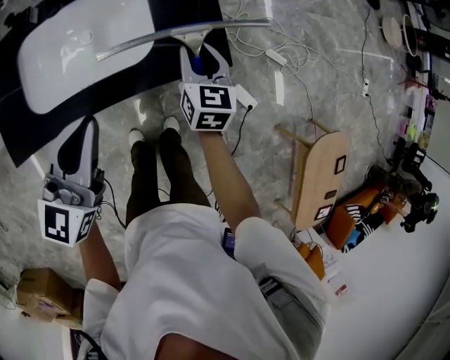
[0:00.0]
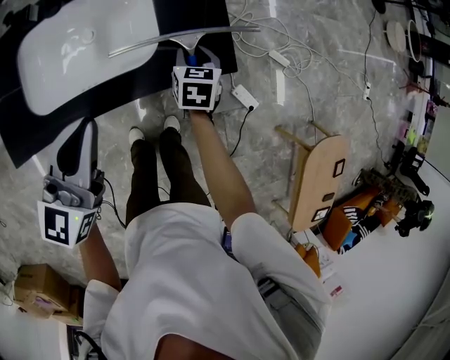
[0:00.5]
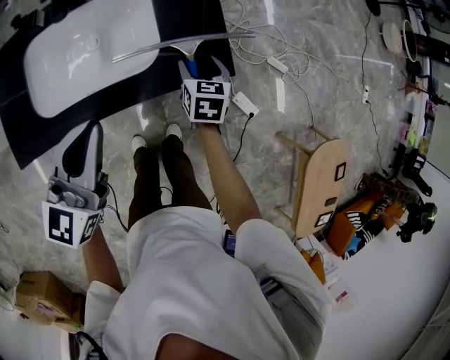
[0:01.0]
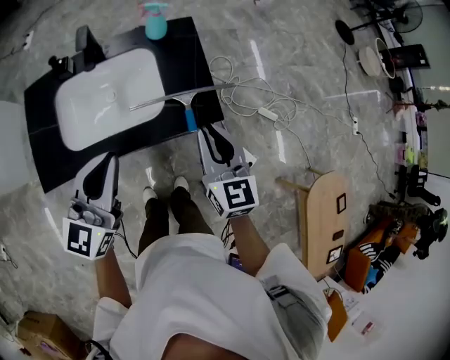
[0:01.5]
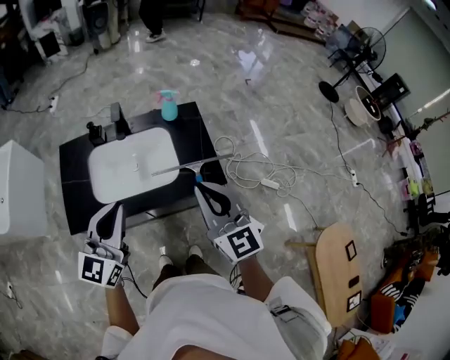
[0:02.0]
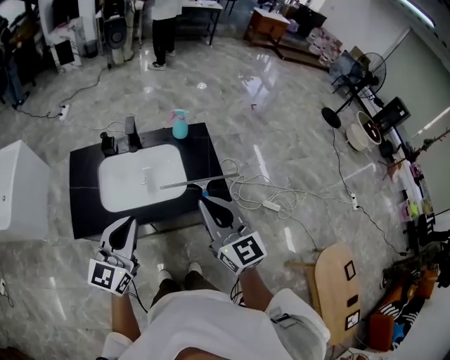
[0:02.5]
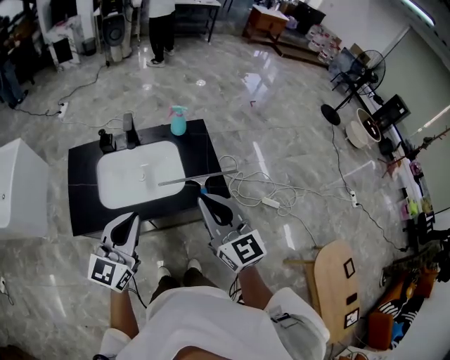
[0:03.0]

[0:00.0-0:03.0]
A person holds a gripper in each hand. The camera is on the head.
0:00.0 to 0:01.5: The left gripper moves upward, some 5 cm. The right gripper shifts roughly 20 cm upward and backward, and opens, then closes once more.
0:01.5 to 0:03.0: The right gripper goes approximately 20 cm upward, to the left and backward, and rotates about 20 degrees. The left gripper travels upward and backward by about 10 cm.

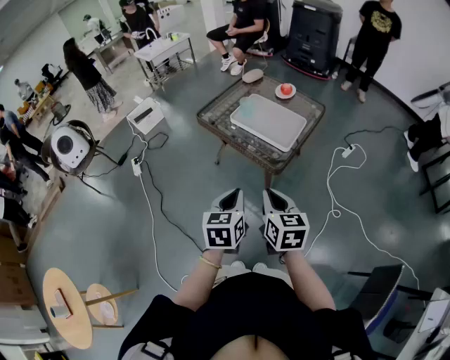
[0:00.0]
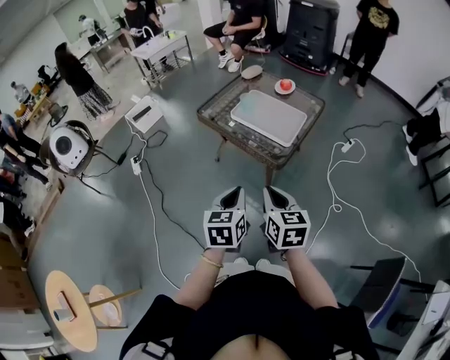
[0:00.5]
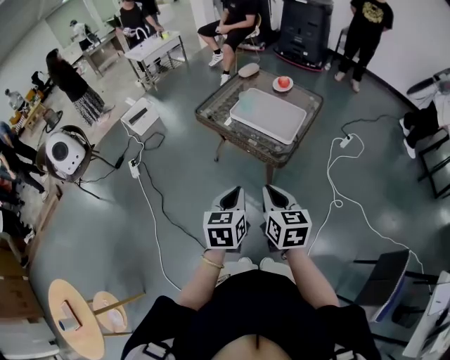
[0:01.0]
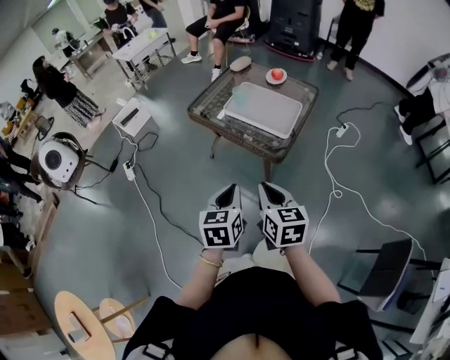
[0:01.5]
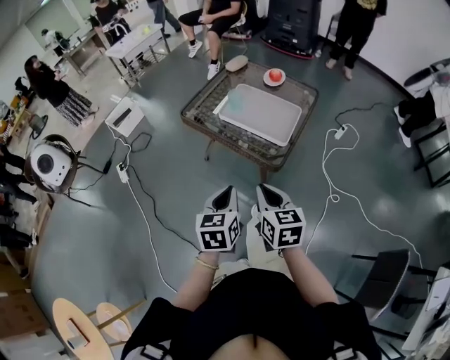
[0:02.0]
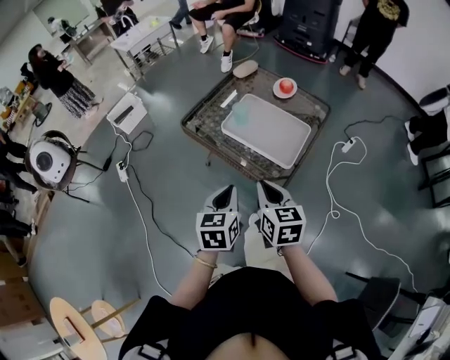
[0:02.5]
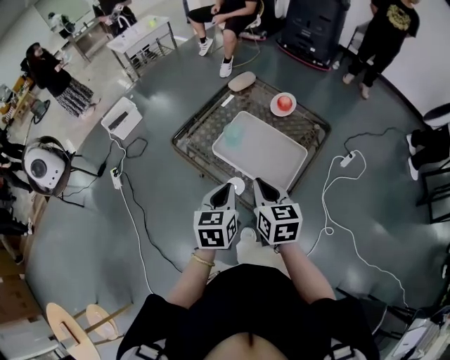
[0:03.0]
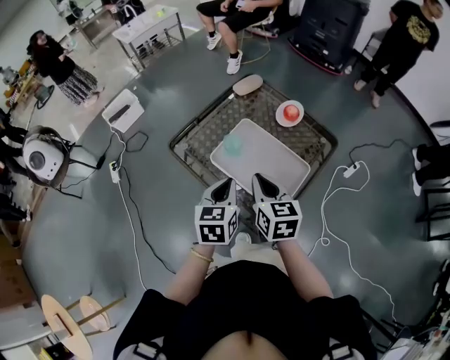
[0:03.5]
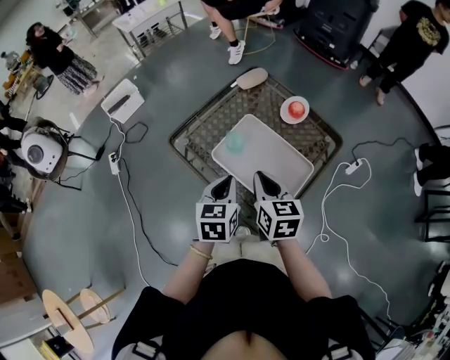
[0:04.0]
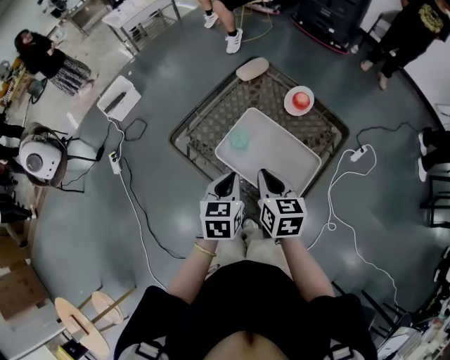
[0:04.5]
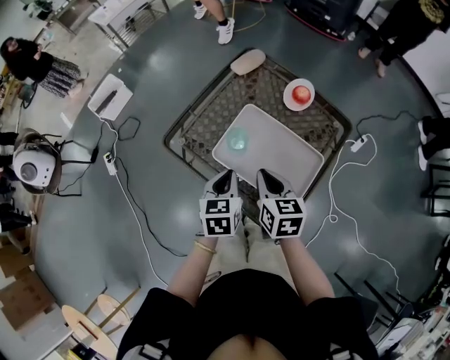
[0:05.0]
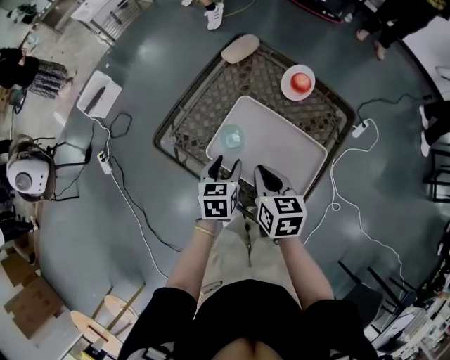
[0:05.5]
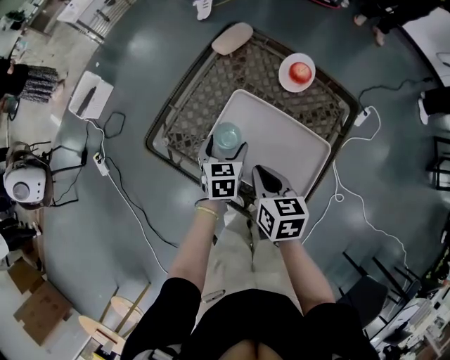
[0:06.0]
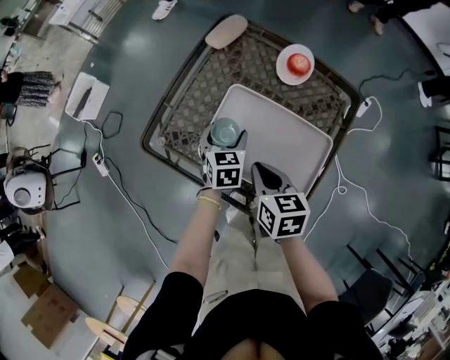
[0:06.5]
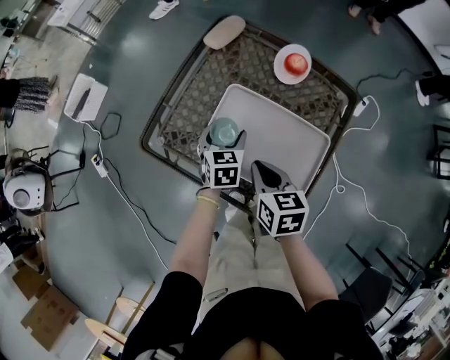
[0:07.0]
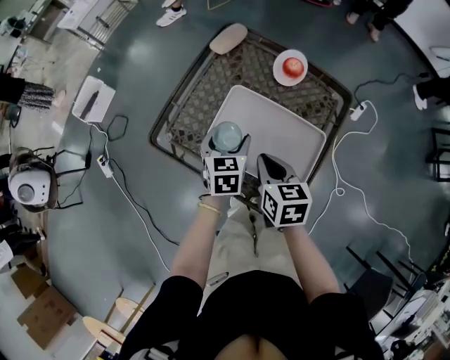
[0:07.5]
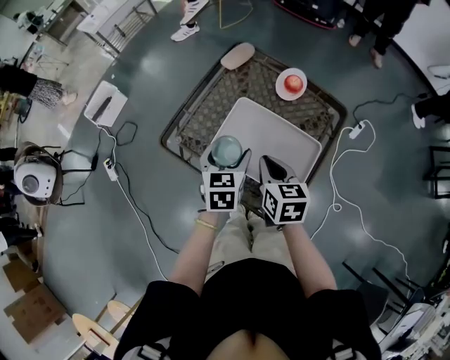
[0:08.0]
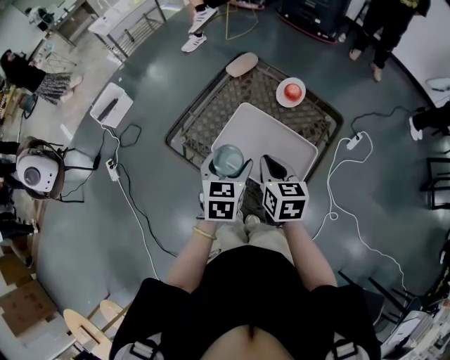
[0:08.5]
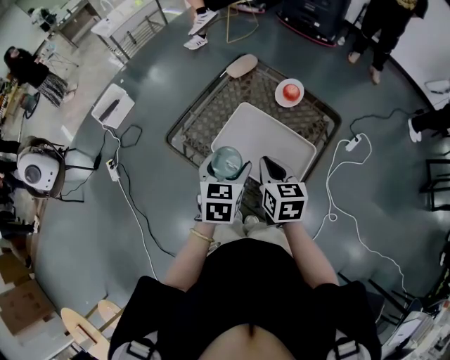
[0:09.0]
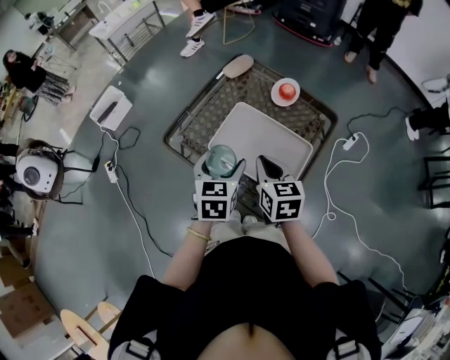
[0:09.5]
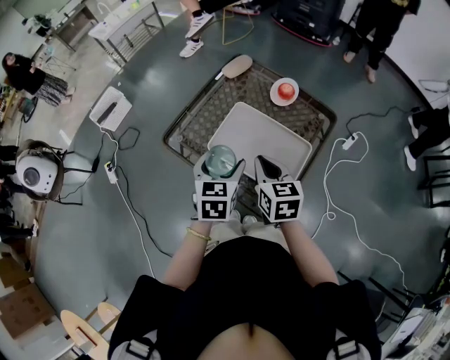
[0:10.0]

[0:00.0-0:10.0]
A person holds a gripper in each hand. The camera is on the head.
0:00.0 to 0:02.0: Both grippers travel together forward, about 5 cm.
0:02.0 to 0:04.0: The two grippers go some 35 cm forward.
0:04.0 to 0:06.0: The right gripper travels downward and forward by approximately 15 cm, while the left gripper is displaced downward and forward by approximately 25 cm, and opens.
0:06.0 to 0:08.0: The right gripper goes approximately 5 cm upward. The left gripper shifts some 15 cm upward.
0:08.0 to 0:10.0: The right gripper shifts by roughly 5 cm. Meanwhile the left gripper moves backward and upward, roughly 10 cm.

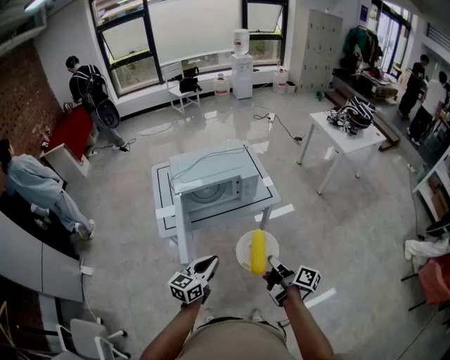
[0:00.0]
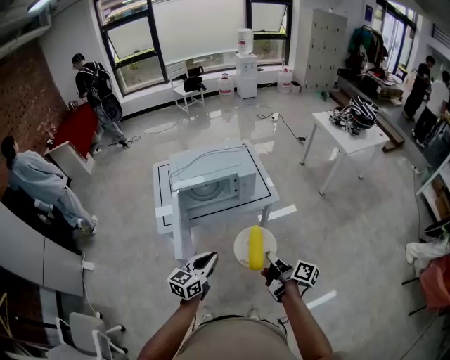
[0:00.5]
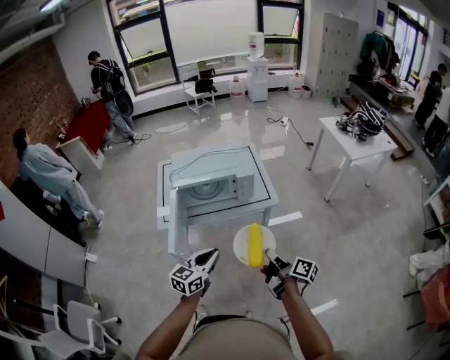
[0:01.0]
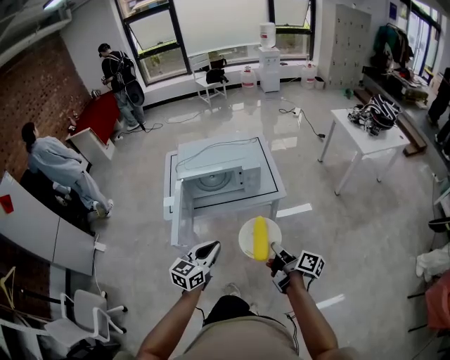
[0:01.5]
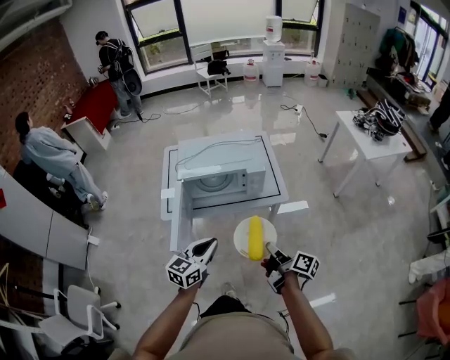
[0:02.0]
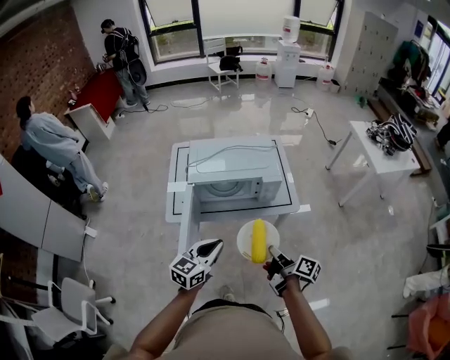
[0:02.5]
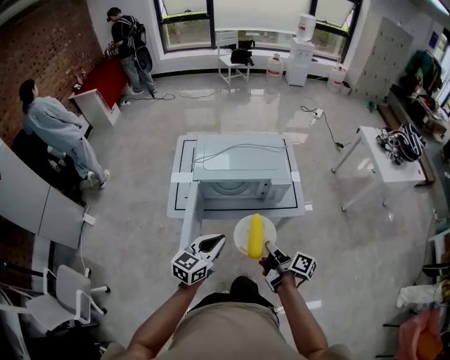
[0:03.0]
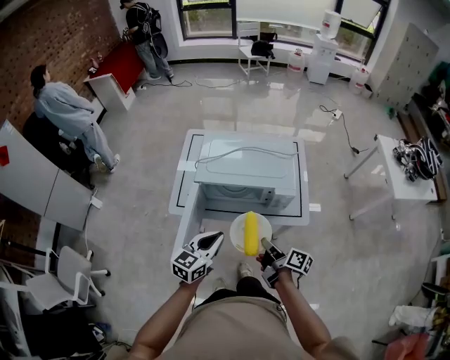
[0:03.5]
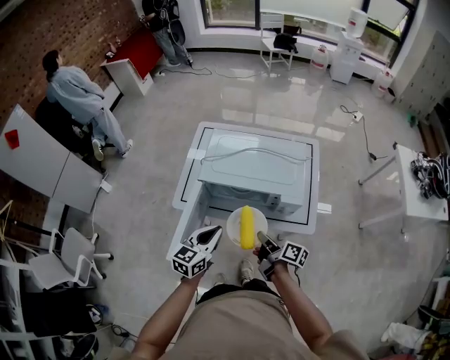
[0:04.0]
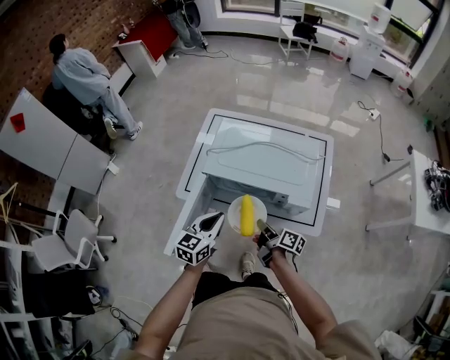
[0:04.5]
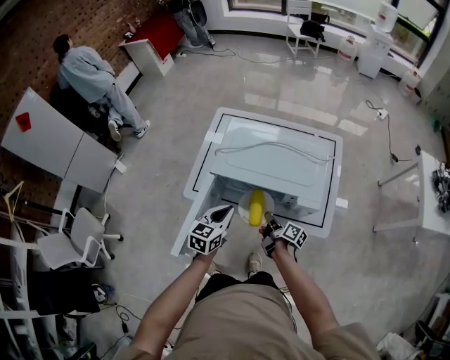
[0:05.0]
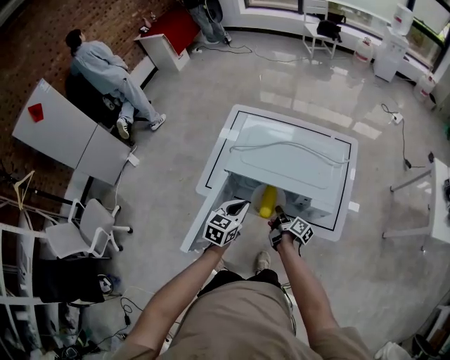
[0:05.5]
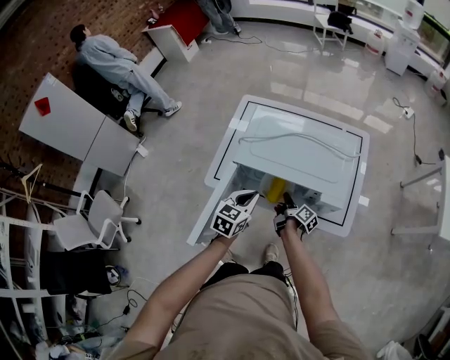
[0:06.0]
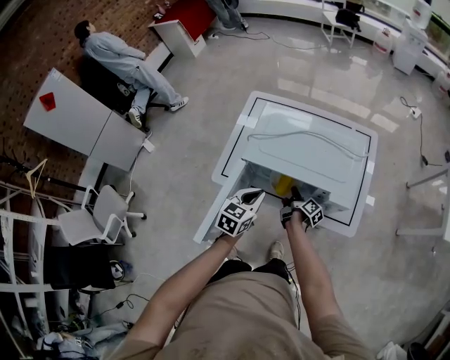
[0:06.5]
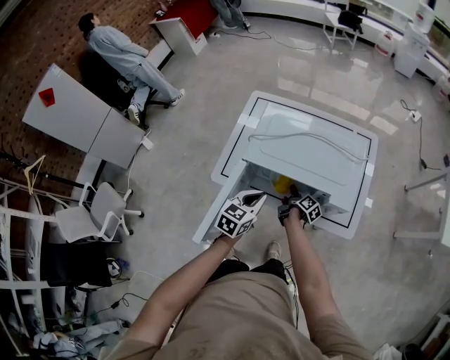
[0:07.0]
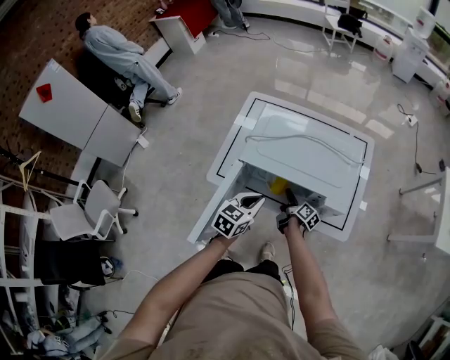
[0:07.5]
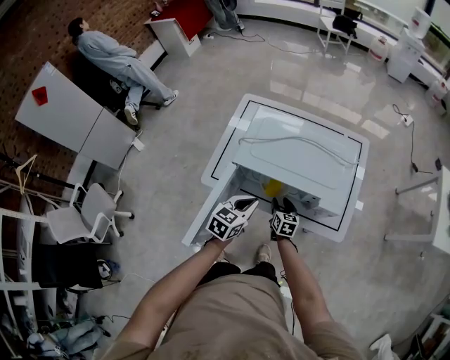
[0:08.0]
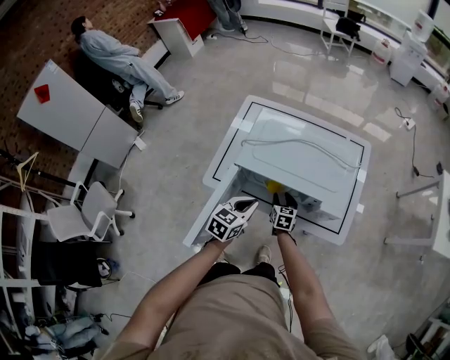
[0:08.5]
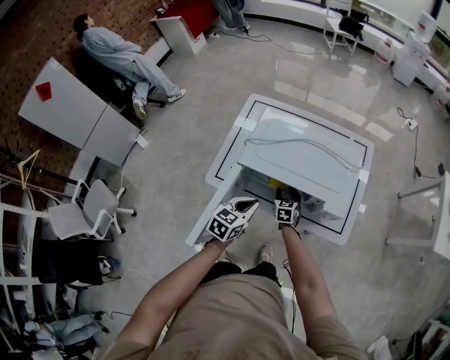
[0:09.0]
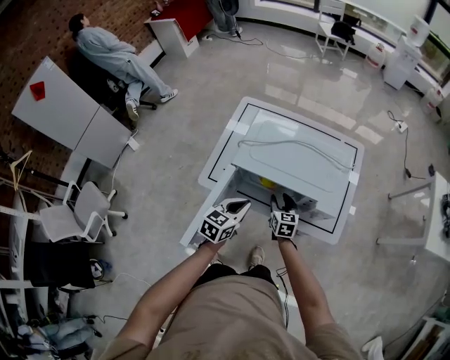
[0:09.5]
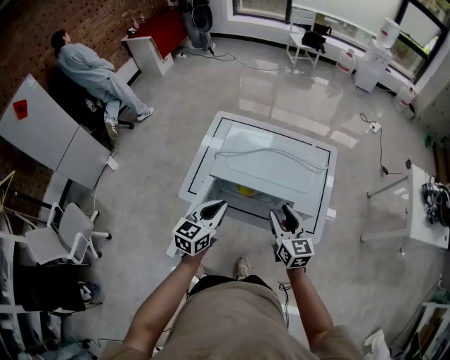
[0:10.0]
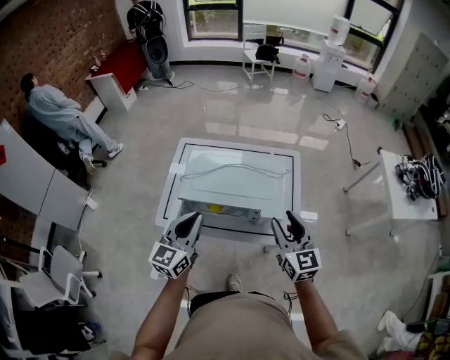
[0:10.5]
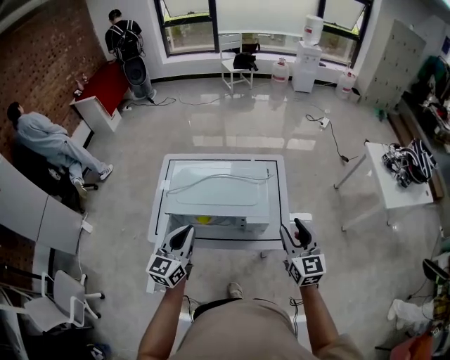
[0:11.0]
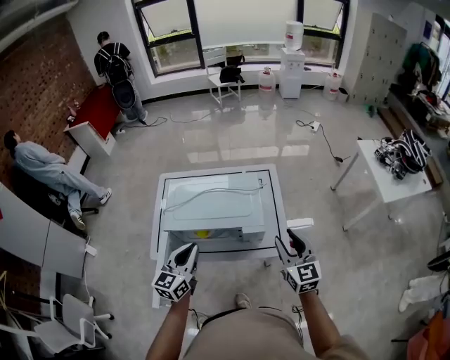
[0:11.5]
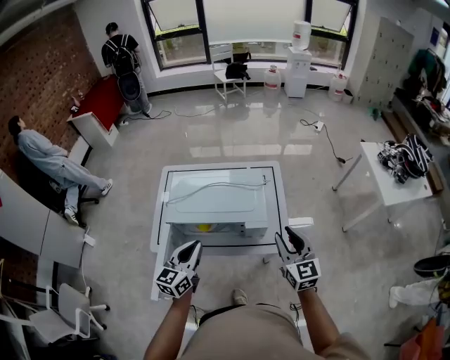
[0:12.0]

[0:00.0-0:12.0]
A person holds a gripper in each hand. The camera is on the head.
0:00.0 to 0:02.0: The right gripper travels forward by some 5 cm. Meanwhile the left gripper heads to the right, covering roughly 5 cm.
0:02.0 to 0:04.0: The two grippers go some 20 cm forward. The left gripper changes its angle by approximately 20 degrees. The right gripper rotates some 20 degrees.
0:04.0 to 0:06.0: The right gripper travels downward and forward by some 25 cm. The left gripper moves forward and downward, approximately 15 cm.
0:06.0 to 0:08.0: The right gripper rolls counterclockwise, seen from behind, by about 60 degrees, and opens up.
0:08.0 to 0:10.0: The left gripper travels upward by about 10 cm, while the right gripper travels upward by approximately 30 cm, and changes its angle by approximately 20 degrees.
0:10.0 to 0:12.0: The right gripper goes about 20 cm to the right and upward, and turns by approximately 20 degrees; the left gripper moves to the right and upward, roughly 10 cm.

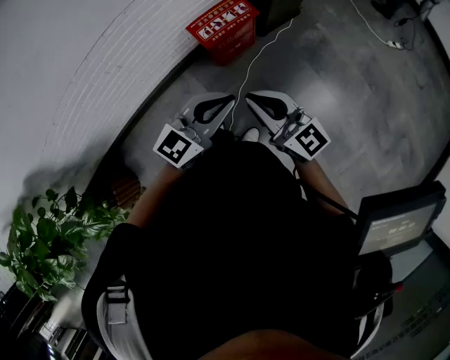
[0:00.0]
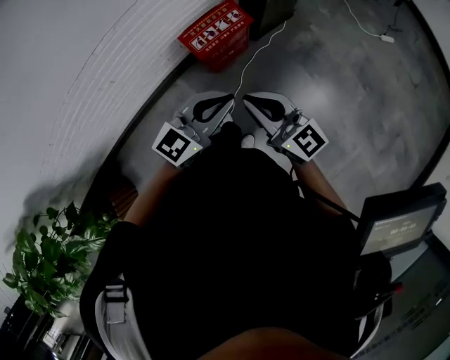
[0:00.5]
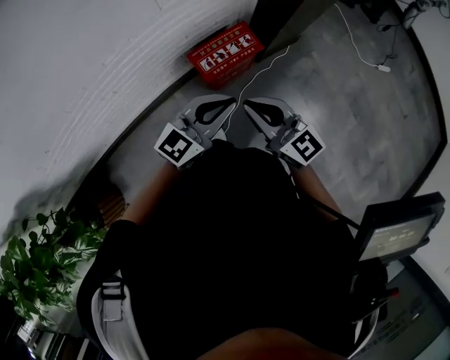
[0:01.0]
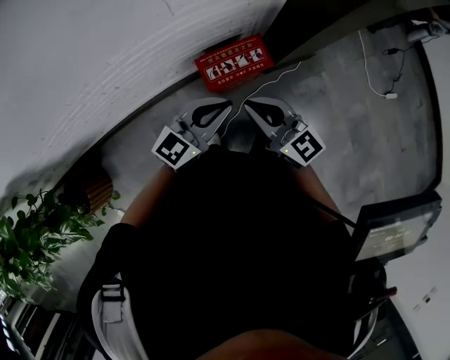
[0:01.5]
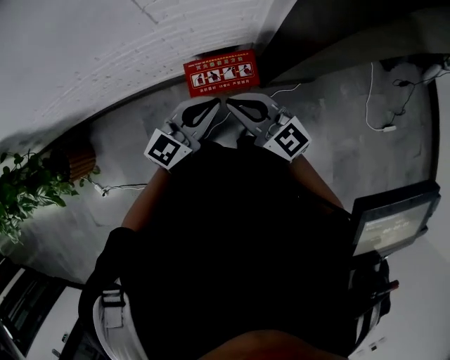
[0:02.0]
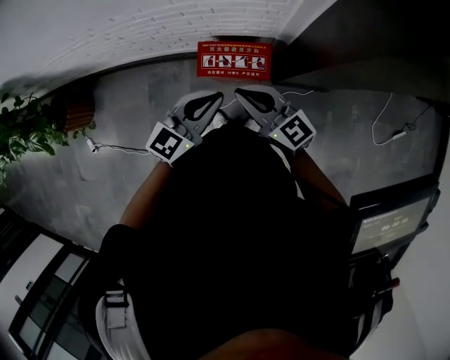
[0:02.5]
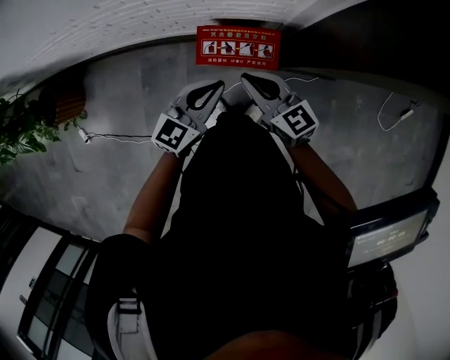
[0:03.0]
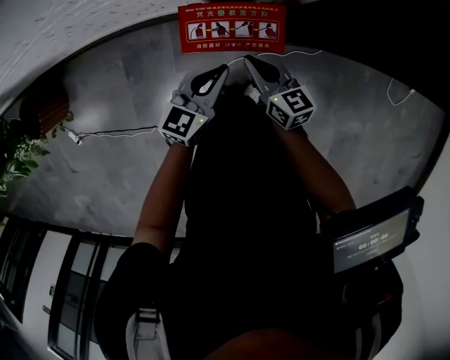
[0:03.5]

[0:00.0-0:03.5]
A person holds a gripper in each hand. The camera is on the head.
0:00.0 to 0:02.0: The right gripper shifts by about 35 cm, and changes its angle by roughly 30 degrees. Meanwhile the left gripper moves some 35 cm, and changes its angle by roughly 30 degrees.
0:02.0 to 0:03.5: Both grippers move downward, about 30 cm. The right gripper swivels some 30 degrees; the left gripper turns by about 20 degrees.
